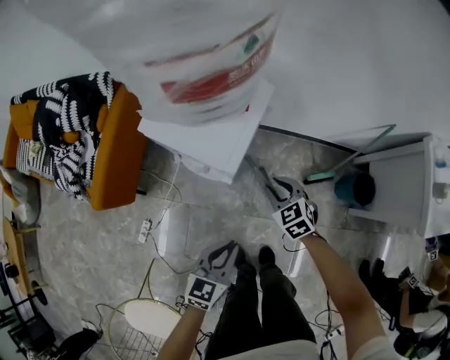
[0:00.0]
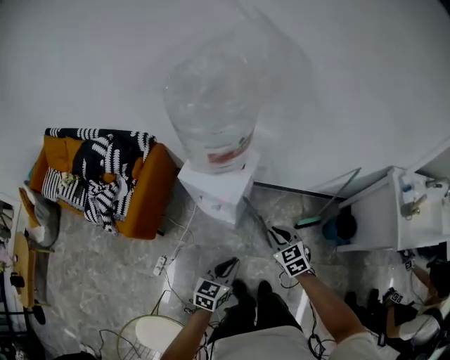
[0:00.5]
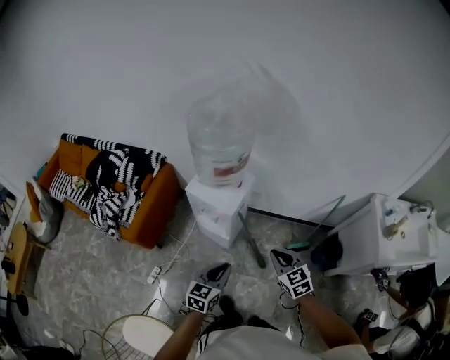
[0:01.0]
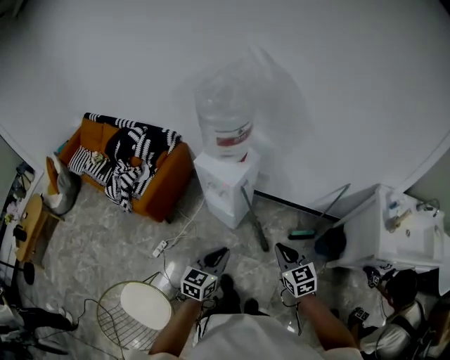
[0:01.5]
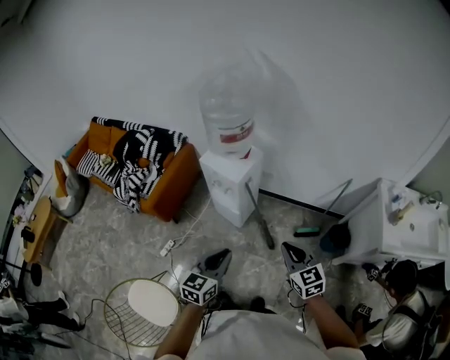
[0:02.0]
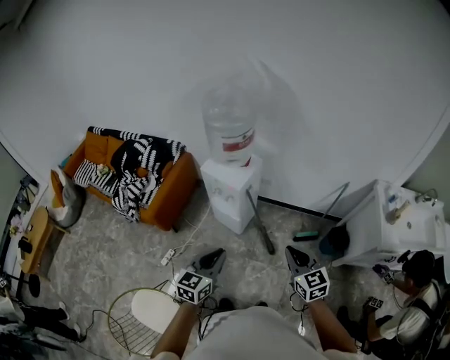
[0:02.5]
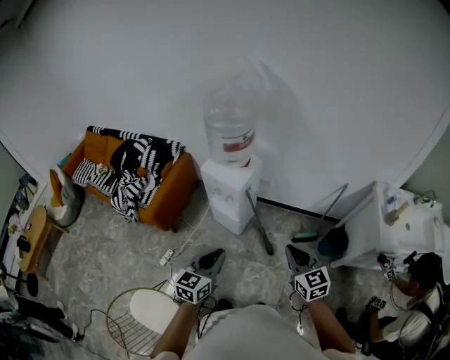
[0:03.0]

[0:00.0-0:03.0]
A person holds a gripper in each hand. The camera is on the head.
0:00.0 to 0:01.5: The grippers both shift upward and backward by approximately 40 cm. The right gripper swivels roughly 20 degrees, and closes up.
0:01.5 to 0:03.0: The left gripper shifts approximately 5 cm upward, while the right gripper is displaced upward and backward by roughly 10 cm.

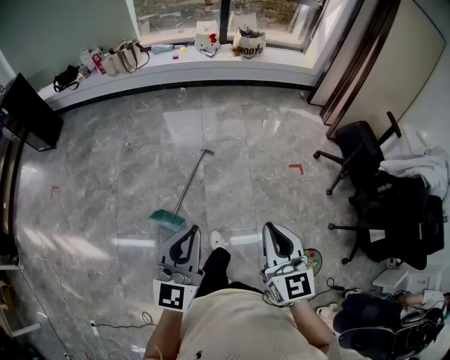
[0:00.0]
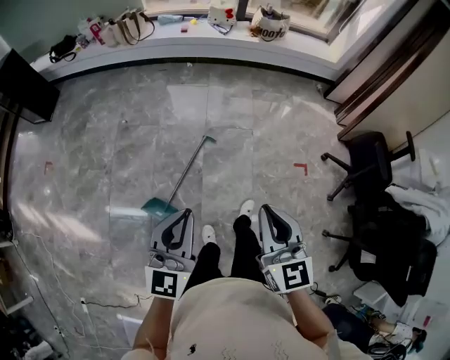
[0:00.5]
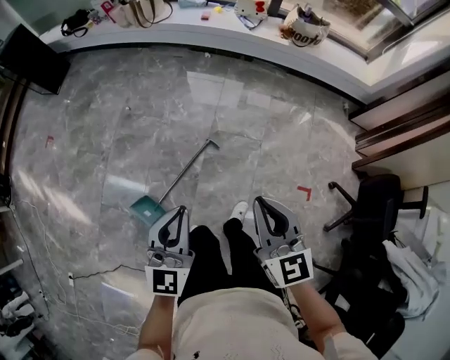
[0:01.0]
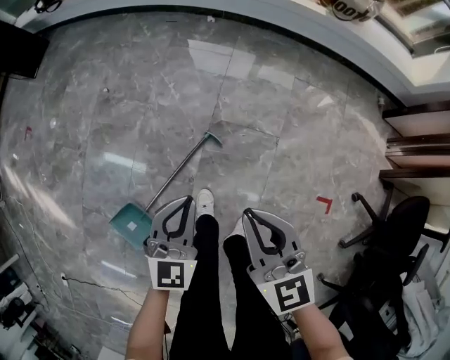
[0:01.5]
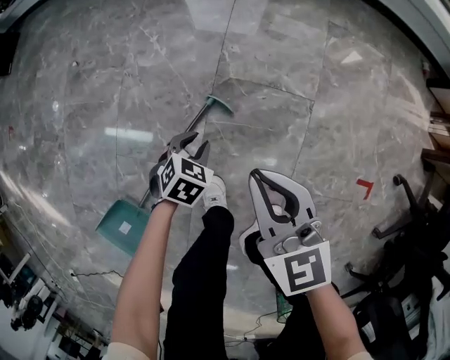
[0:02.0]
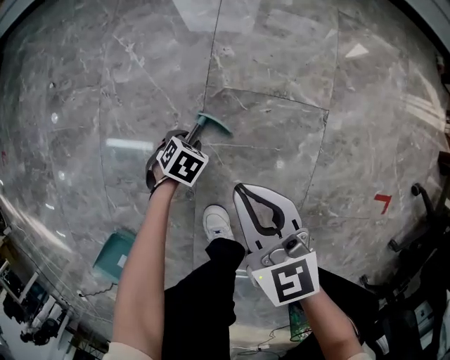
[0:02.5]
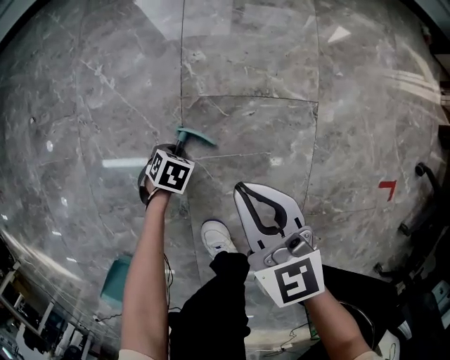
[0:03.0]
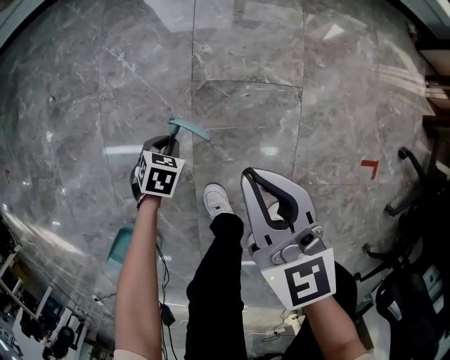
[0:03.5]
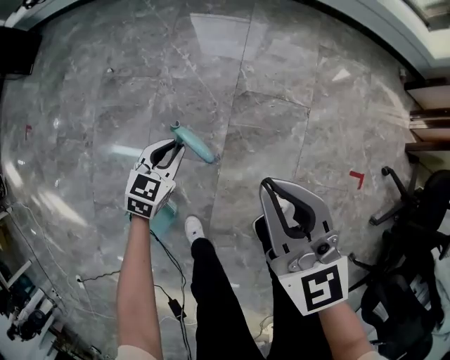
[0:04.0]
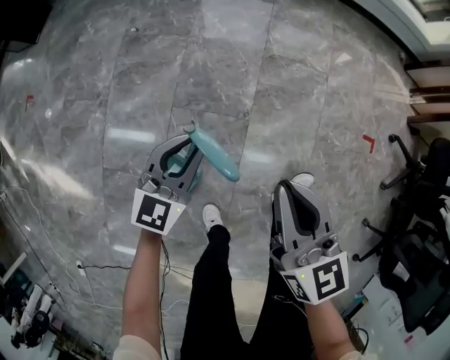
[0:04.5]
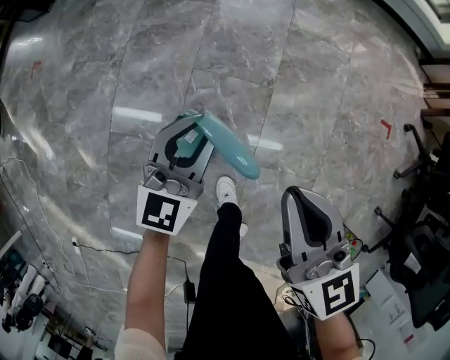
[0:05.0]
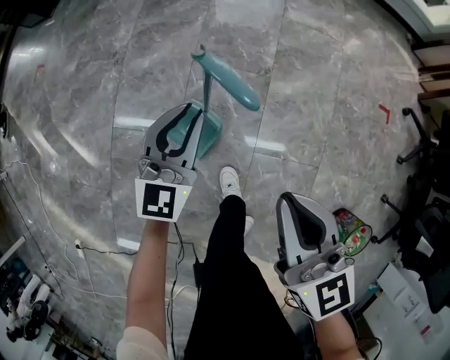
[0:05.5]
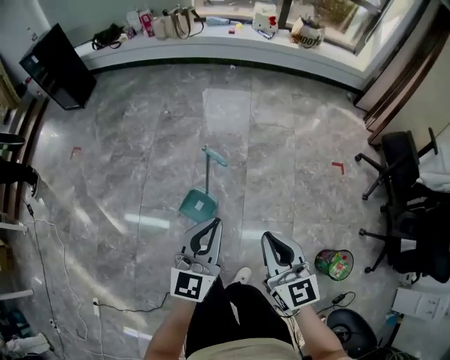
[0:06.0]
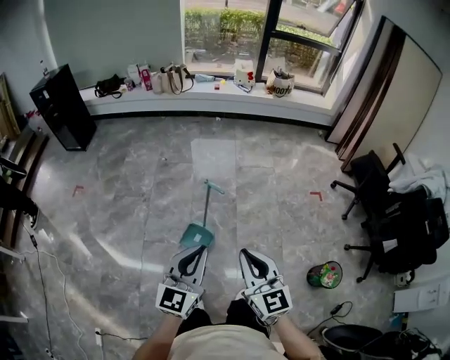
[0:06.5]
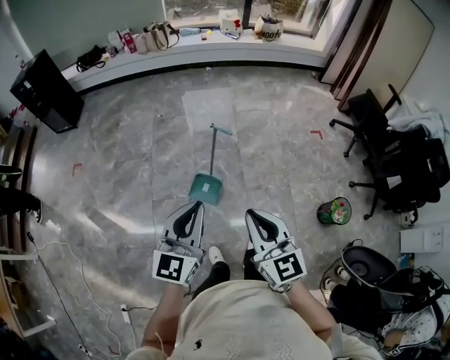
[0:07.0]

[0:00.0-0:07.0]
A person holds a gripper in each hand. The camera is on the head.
0:00.0 to 0:02.0: The pair of grippers is taken forward, roughly 60 cm. The two grippers go some 80 cm downward. The left gripper tilts its fingers approximately 70 degrees downward, and opens its fingers; the right gripper turns by about 30 degrees.
0:02.0 to 0:03.5: The left gripper travels downward and back again, about 25 cm each way. The right gripper goes downward and returns, some 20 cm each way.
0:03.5 to 0:05.0: Both grippers are carried roughly 50 cm. The left gripper angles its fingers upward, by roughly 70 degrees.
0:05.0 to 0:07.0: The two grippers travel together, backward, some 40 cm. Both grippers move upward, approximately 50 cm. The right gripper rotates approximately 20 degrees.

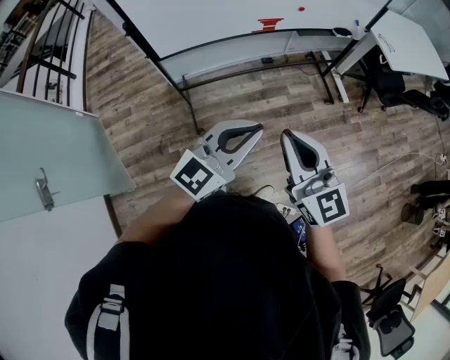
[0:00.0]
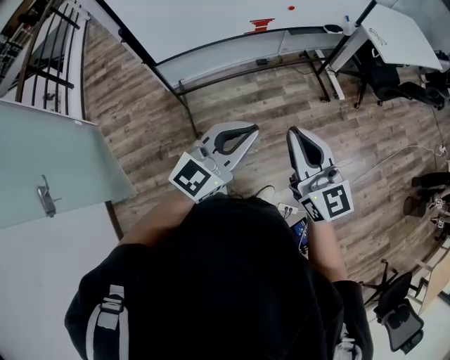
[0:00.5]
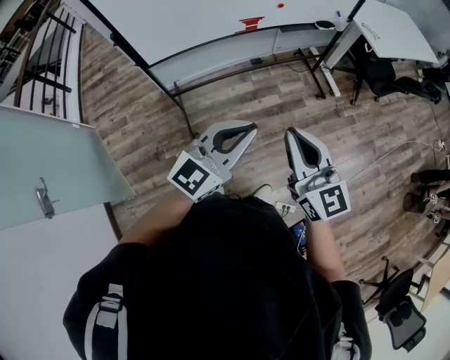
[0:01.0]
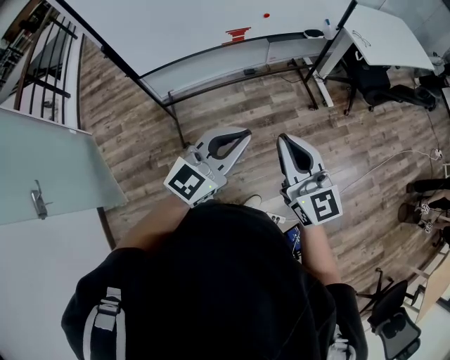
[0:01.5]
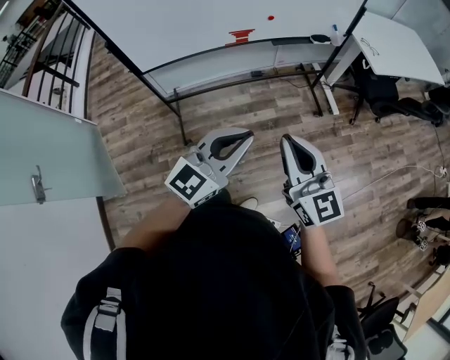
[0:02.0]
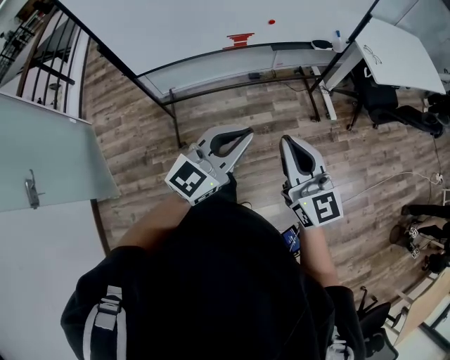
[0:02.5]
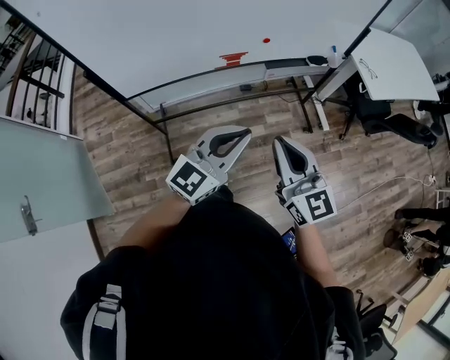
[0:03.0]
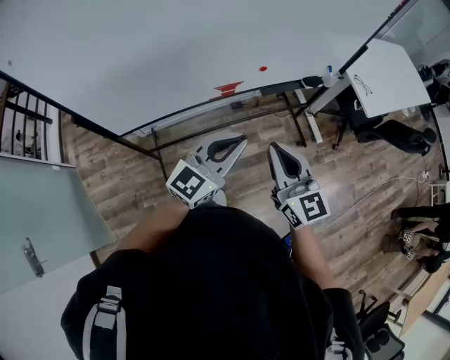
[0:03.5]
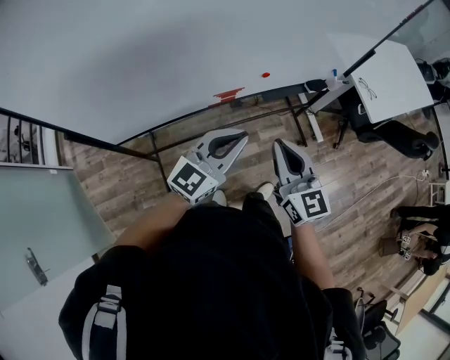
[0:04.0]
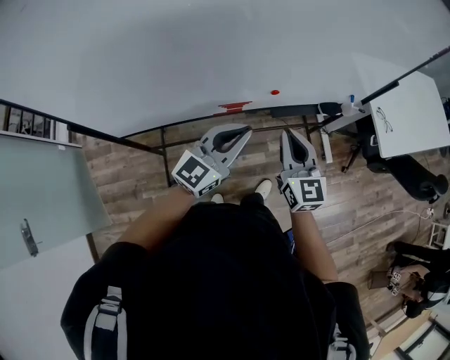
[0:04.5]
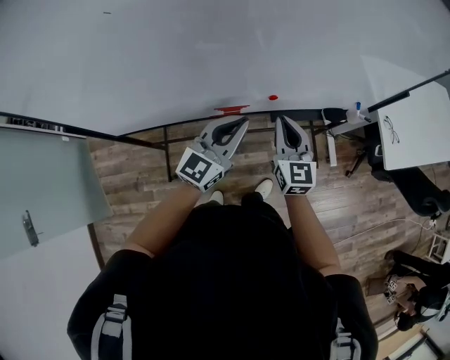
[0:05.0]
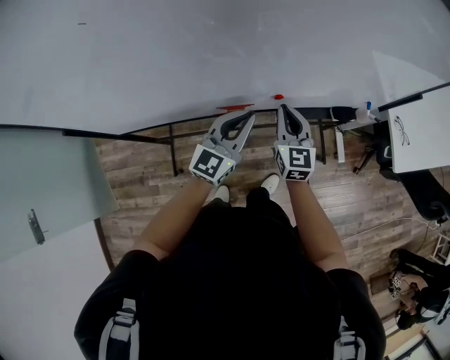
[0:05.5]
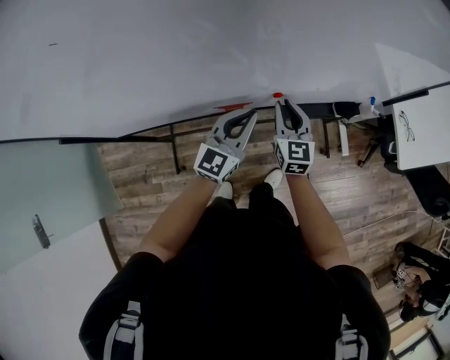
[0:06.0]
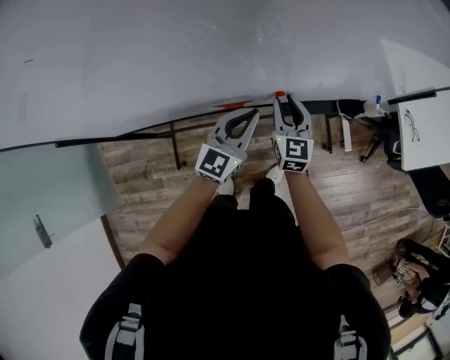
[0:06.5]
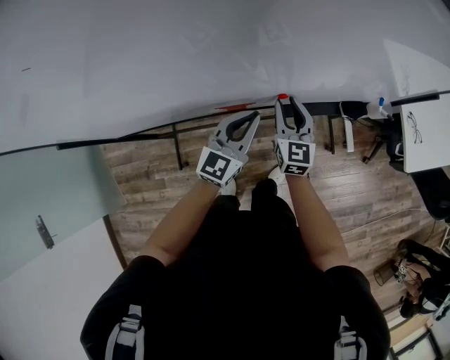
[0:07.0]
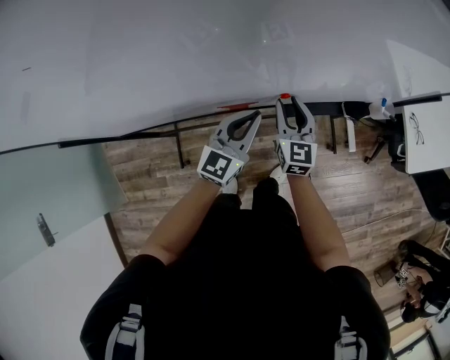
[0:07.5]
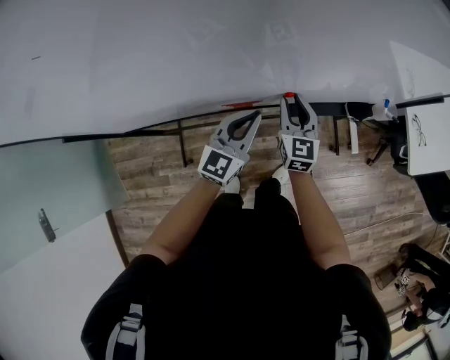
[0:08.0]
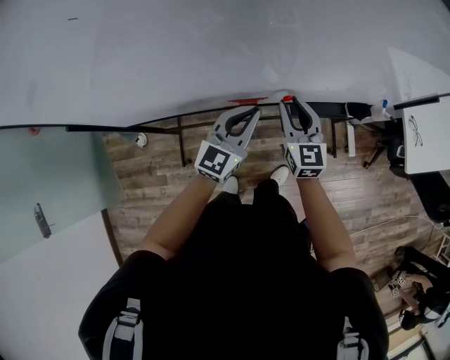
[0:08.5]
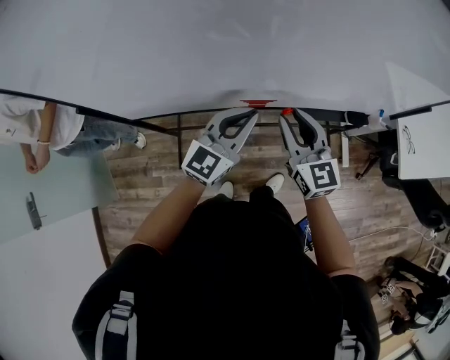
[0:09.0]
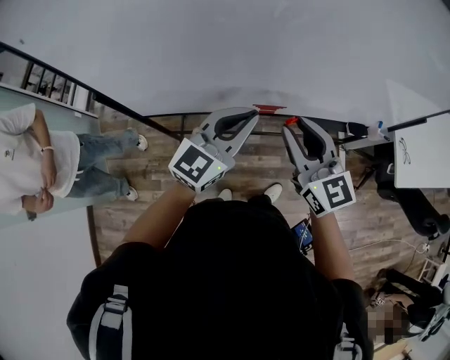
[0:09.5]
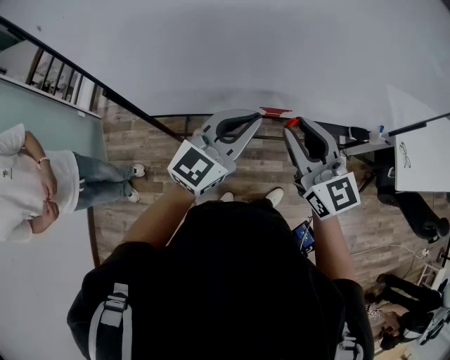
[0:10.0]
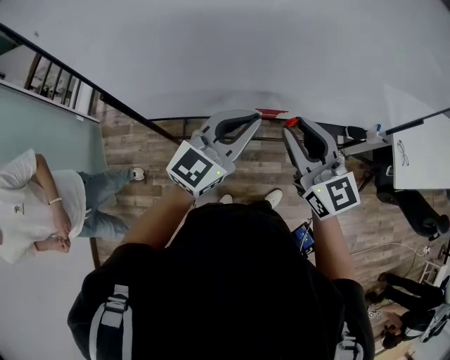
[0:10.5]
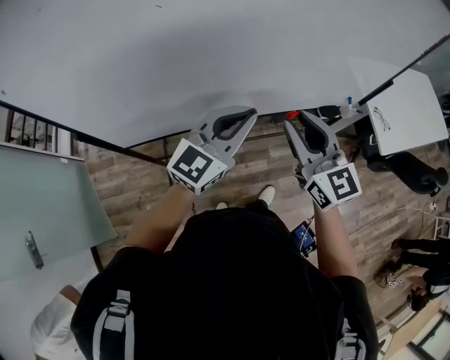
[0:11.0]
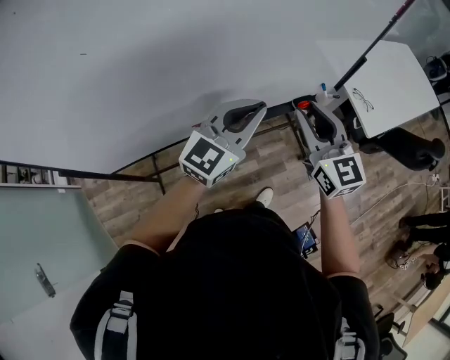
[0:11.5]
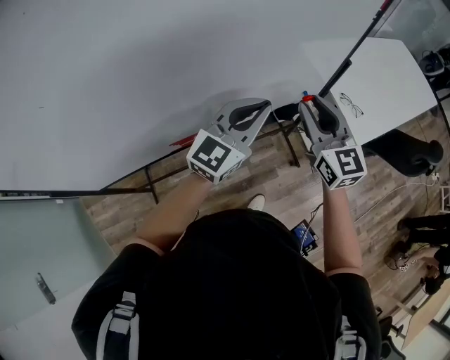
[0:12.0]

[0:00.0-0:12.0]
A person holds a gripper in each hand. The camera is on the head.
0:00.0 to 0:02.0: Both grippers travel together to the right, some 15 cm.
0:02.0 to 0:04.0: Both grippers move forward, roughly 35 cm.
0:04.0 to 0:06.0: The two grippers go roughly 30 cm forward and downward. The left gripper swivels approximately 20 degrees.
0:06.0 to 0:08.0: There are only small adjustments of the grippers.
0:08.0 to 0:10.0: The two grippers go some 30 cm upward, backward and to the left. The right gripper turns by roughly 30 degrees.
0:10.0 to 0:12.0: The left gripper changes place by about 35 cm, and turns by roughly 20 degrees. The right gripper ends up some 40 cm from where it was, and turns by some 30 degrees.

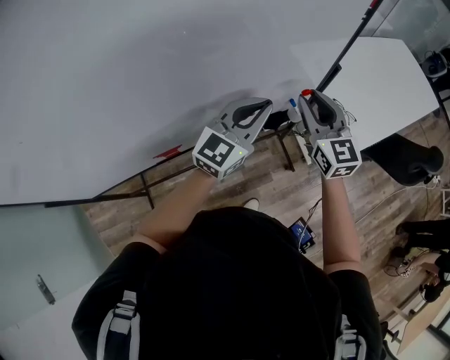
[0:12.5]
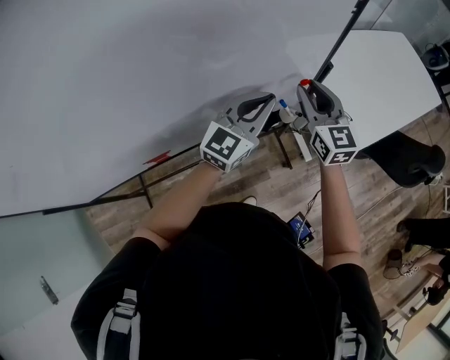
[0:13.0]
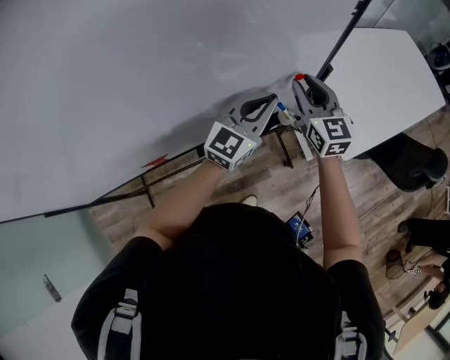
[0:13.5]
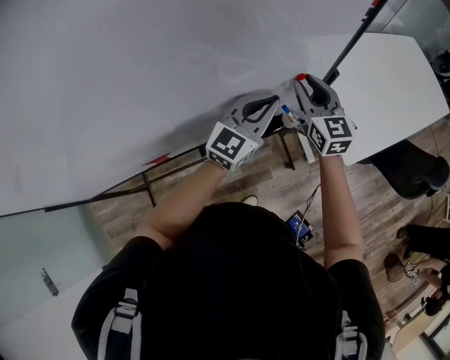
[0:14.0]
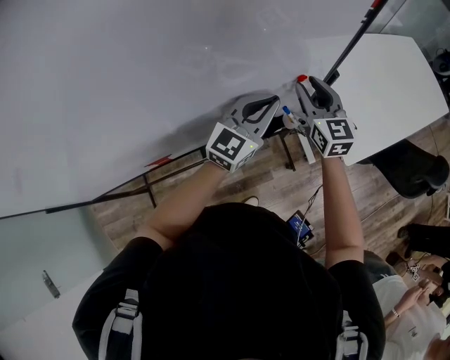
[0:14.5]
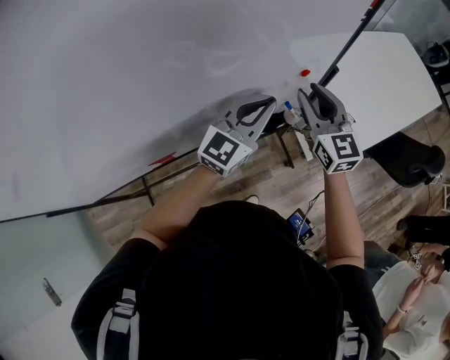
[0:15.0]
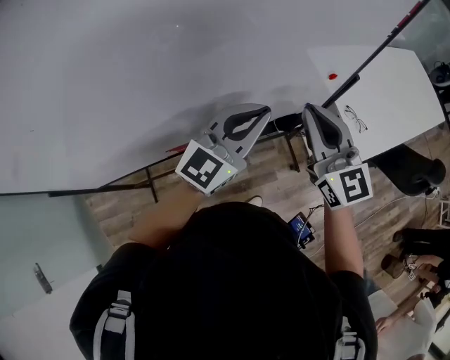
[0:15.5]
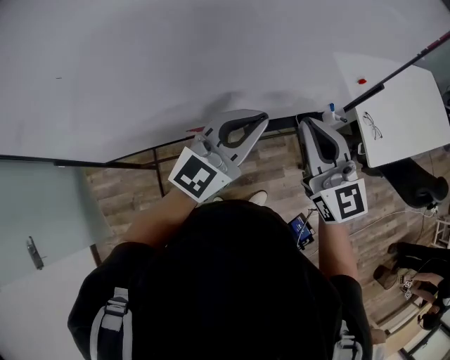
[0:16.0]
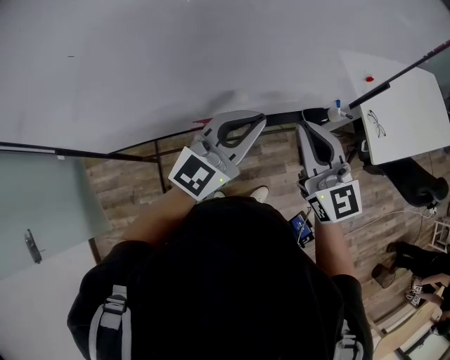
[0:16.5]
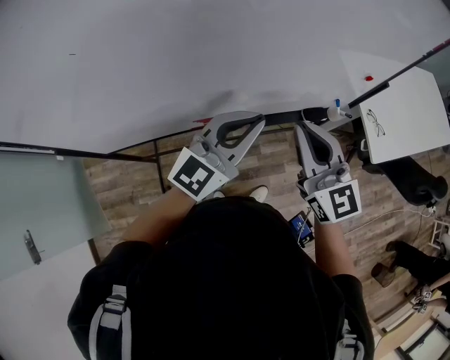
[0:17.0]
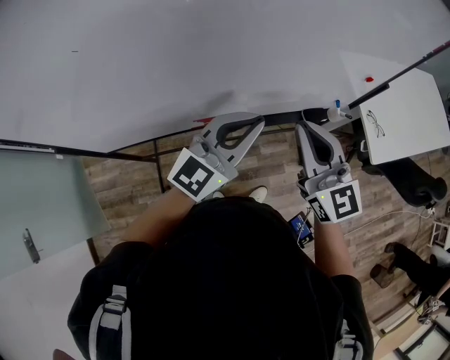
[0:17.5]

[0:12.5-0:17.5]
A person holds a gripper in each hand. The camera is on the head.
0:12.5 to 0:15.0: The grippers both shift forward by about 5 cm.
0:15.0 to 0:17.5: The two grippers go about 30 cm to the left and backward. The right gripper closes.
